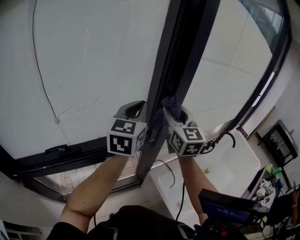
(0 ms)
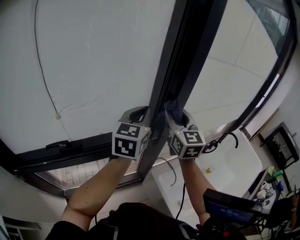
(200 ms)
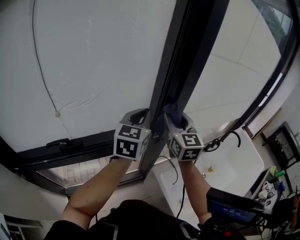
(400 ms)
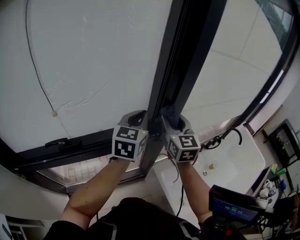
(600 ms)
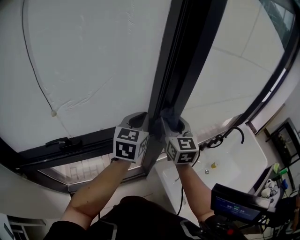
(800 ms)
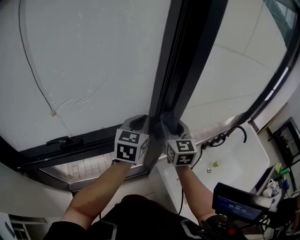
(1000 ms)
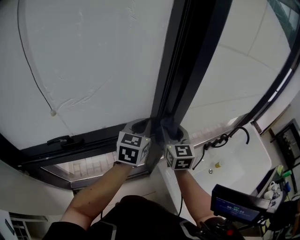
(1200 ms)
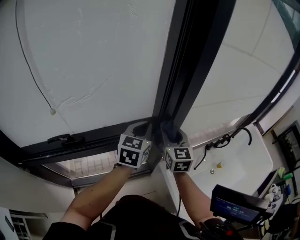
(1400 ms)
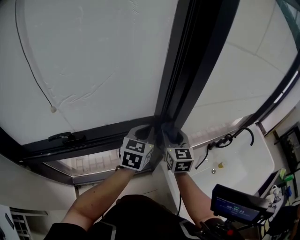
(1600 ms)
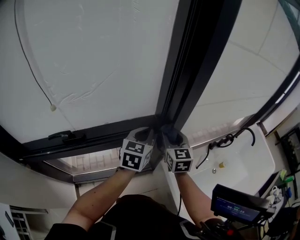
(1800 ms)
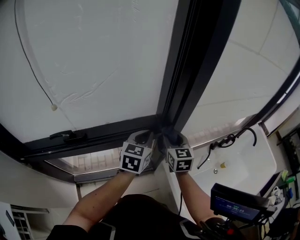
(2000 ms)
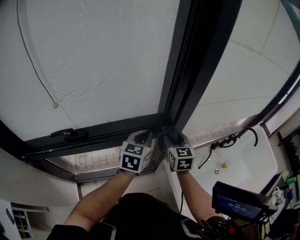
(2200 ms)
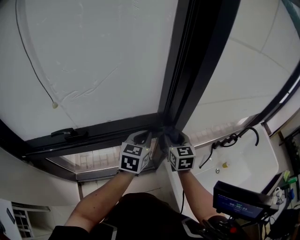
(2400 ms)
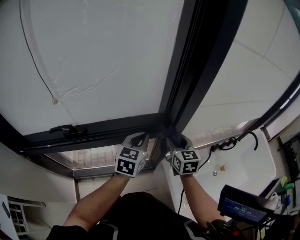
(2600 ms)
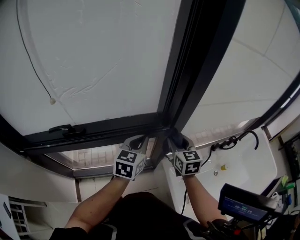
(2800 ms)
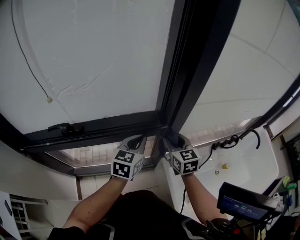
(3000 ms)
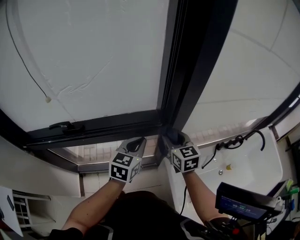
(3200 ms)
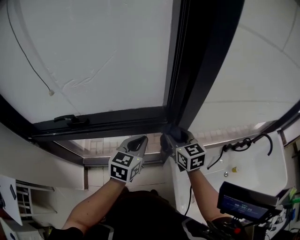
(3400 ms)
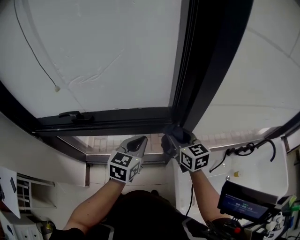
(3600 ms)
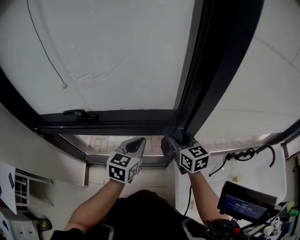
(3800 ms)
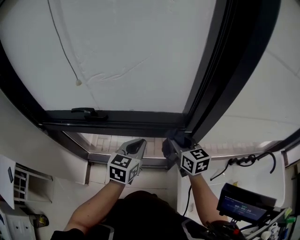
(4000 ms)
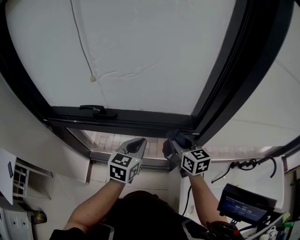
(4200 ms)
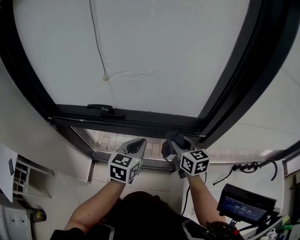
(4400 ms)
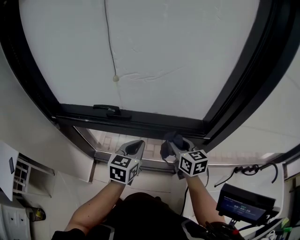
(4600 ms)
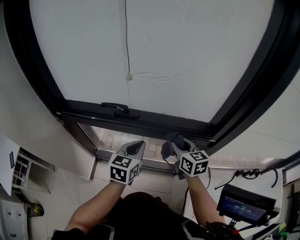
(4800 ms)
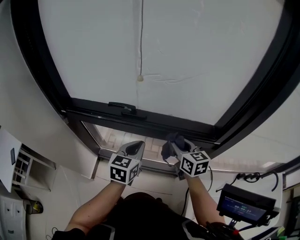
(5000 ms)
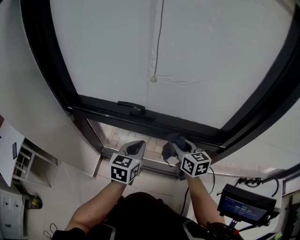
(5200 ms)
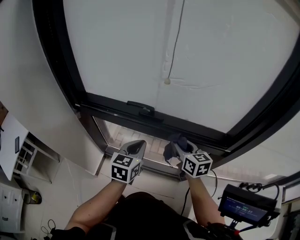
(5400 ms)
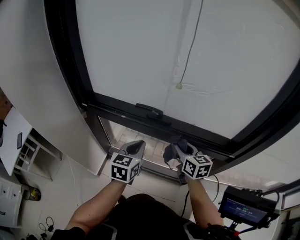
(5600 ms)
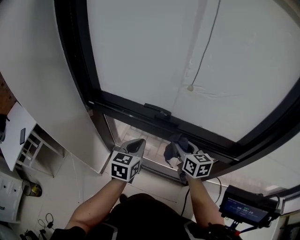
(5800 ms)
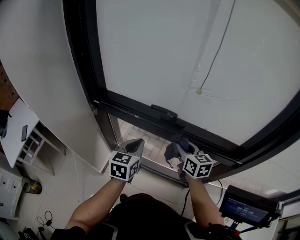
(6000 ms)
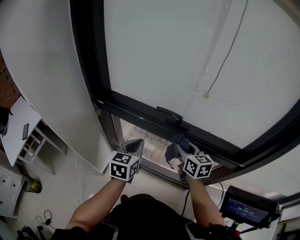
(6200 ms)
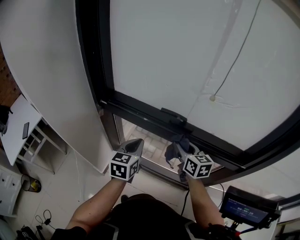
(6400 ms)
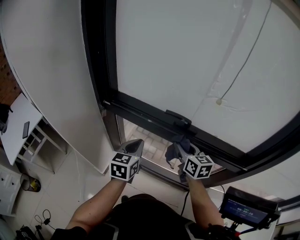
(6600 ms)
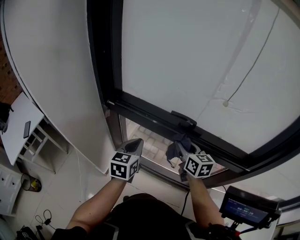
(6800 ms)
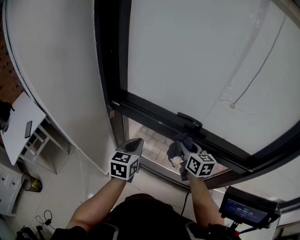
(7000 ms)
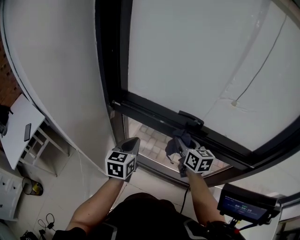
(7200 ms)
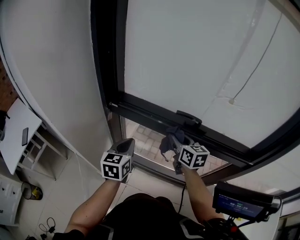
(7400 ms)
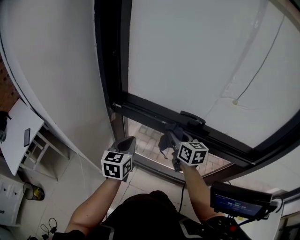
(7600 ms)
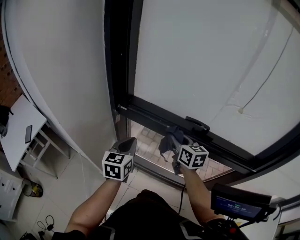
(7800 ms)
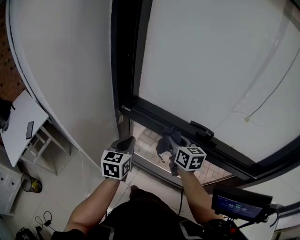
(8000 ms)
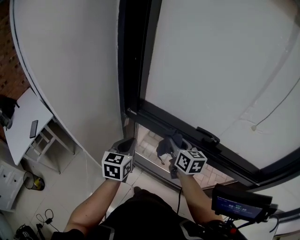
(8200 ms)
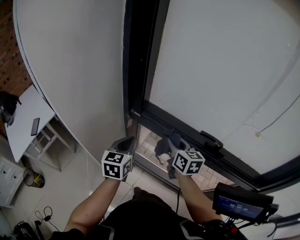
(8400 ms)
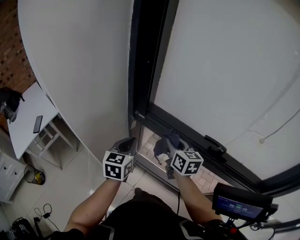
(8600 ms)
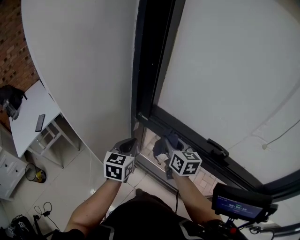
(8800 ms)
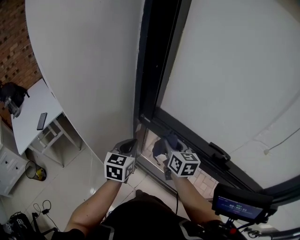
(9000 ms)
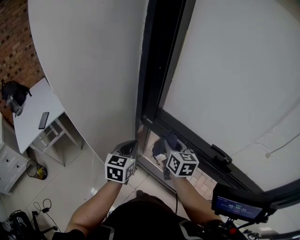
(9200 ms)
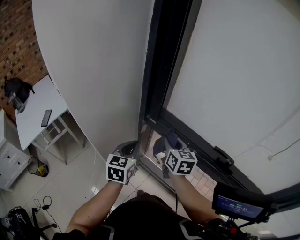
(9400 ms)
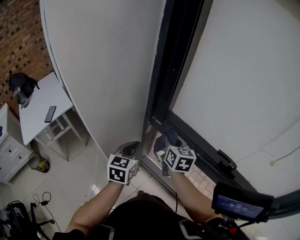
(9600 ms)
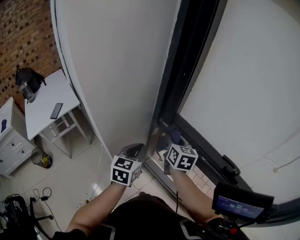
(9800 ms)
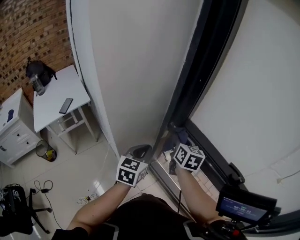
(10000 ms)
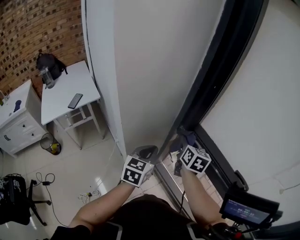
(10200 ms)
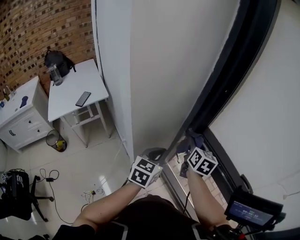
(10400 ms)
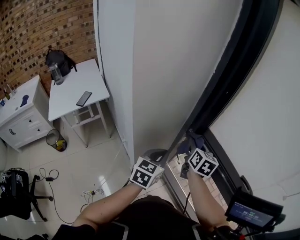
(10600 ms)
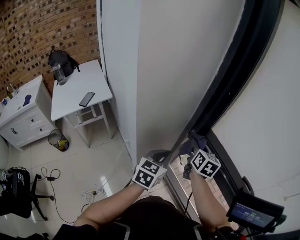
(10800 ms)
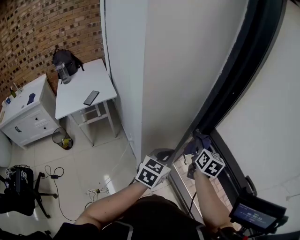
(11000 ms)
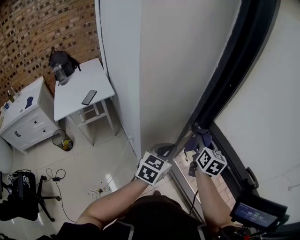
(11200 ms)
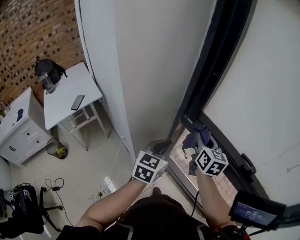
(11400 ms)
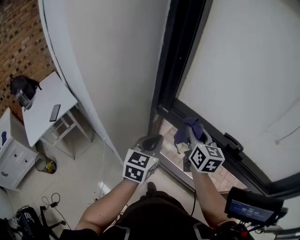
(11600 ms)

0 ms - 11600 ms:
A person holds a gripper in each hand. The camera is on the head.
0 ms - 1400 ms: Both grippers travel together downward, some 20 cm.
1400 ms - 2800 ms: Both grippers move downward, approximately 10 cm.
2800 ms - 4400 ms: The two grippers go some 15 cm to the left. The right gripper rotates some 30 degrees.
4400 ms - 5800 ms: Both grippers travel together to the left, about 20 cm.
5800 ms - 7200 ms: Both grippers move to the left, roughly 15 cm.
7200 ms - 8800 ms: The two grippers go some 15 cm to the left and forward.
8800 ms - 10200 ms: The left gripper goes approximately 5 cm to the left, while the right gripper is displaced to the left and forward by roughly 10 cm.
10200 ms - 11600 ms: The right gripper travels backward, to the right and upward by roughly 15 cm, while the left gripper travels to the right by about 5 cm.

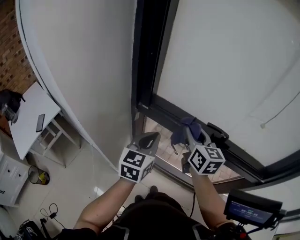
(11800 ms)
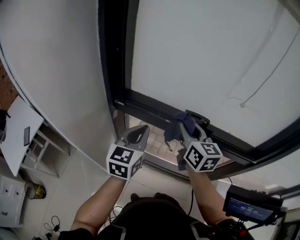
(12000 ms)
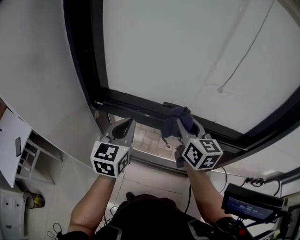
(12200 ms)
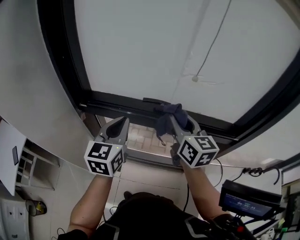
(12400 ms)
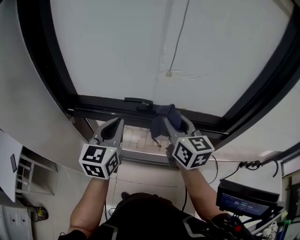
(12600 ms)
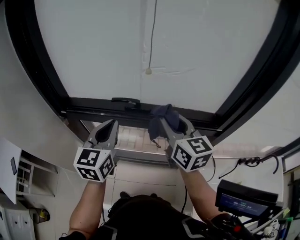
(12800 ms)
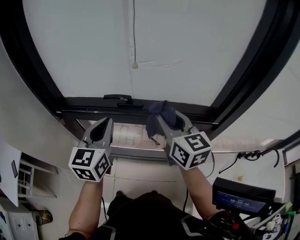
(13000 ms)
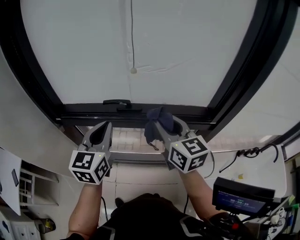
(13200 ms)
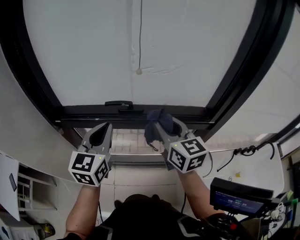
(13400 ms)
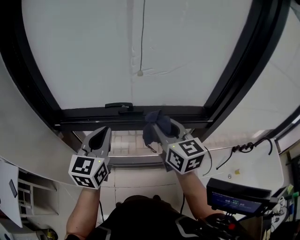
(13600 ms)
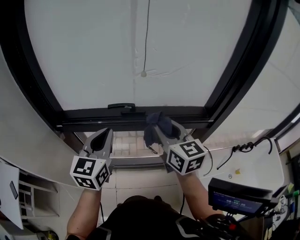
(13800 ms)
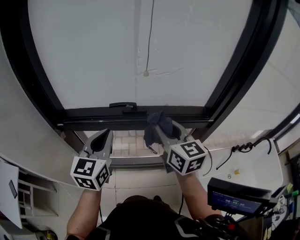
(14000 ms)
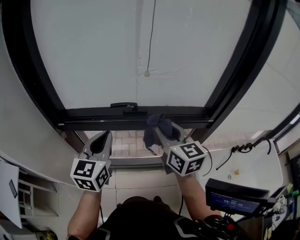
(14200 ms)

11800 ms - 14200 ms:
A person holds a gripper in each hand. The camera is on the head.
11800 ms - 13000 ms: The two grippers go approximately 25 cm to the right.
13000 ms - 14200 ms: The right gripper ends up approximately 5 cm from where it was; the left gripper travels to the left by some 5 cm.

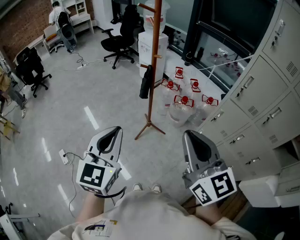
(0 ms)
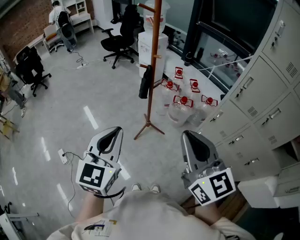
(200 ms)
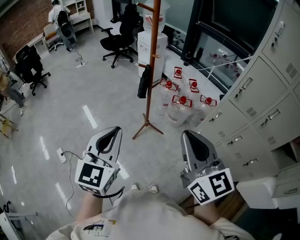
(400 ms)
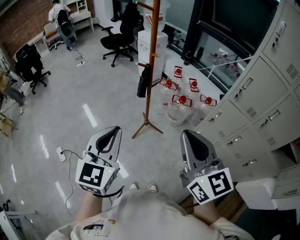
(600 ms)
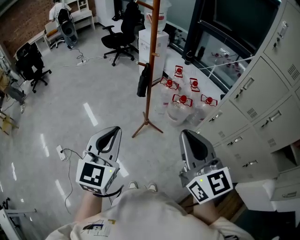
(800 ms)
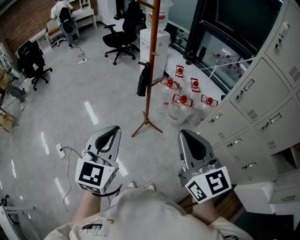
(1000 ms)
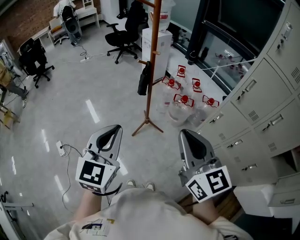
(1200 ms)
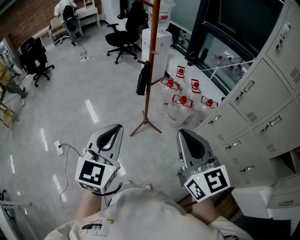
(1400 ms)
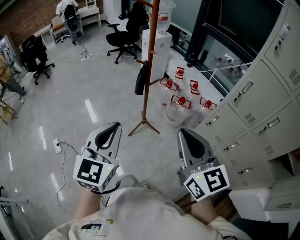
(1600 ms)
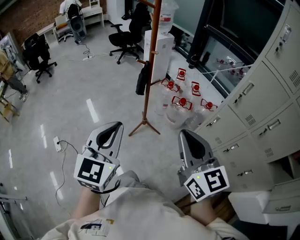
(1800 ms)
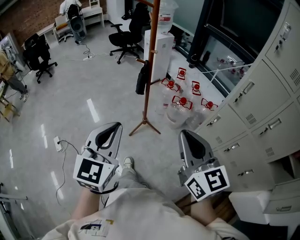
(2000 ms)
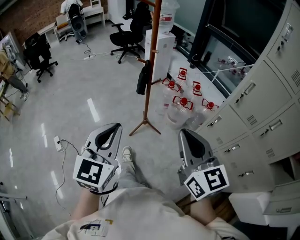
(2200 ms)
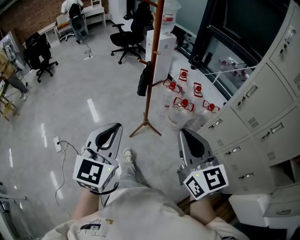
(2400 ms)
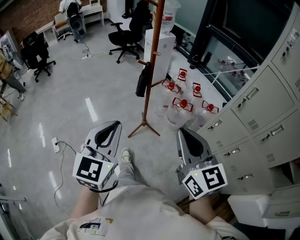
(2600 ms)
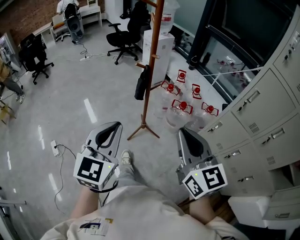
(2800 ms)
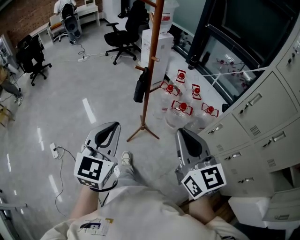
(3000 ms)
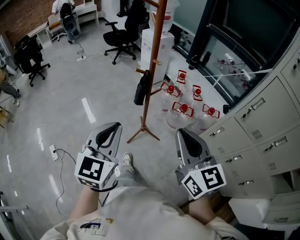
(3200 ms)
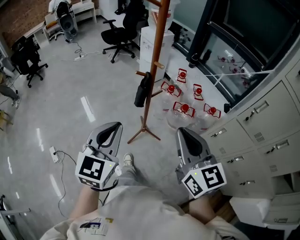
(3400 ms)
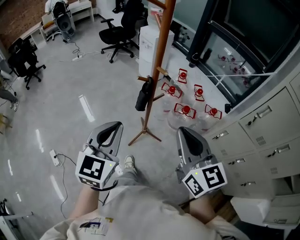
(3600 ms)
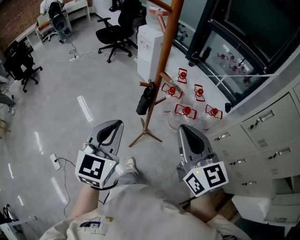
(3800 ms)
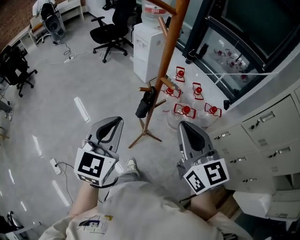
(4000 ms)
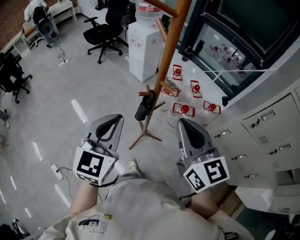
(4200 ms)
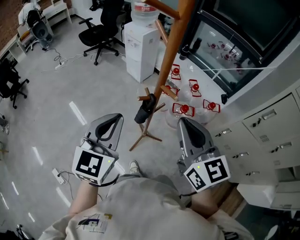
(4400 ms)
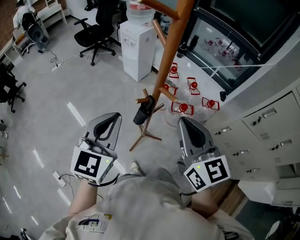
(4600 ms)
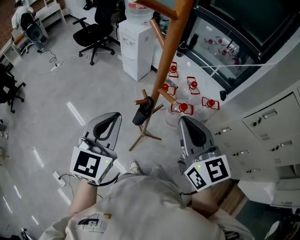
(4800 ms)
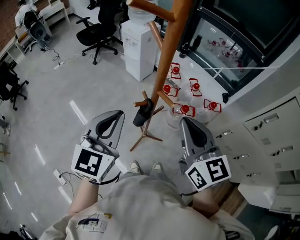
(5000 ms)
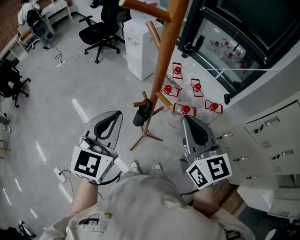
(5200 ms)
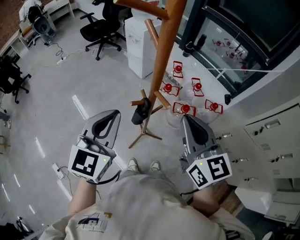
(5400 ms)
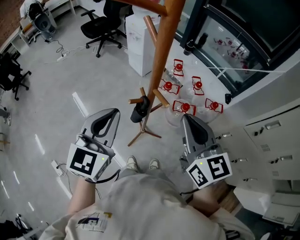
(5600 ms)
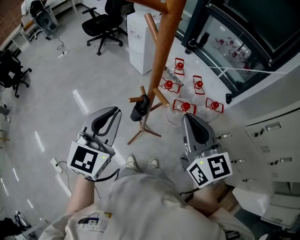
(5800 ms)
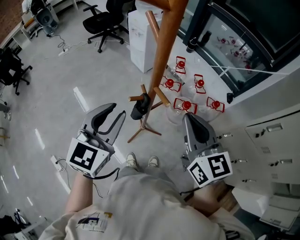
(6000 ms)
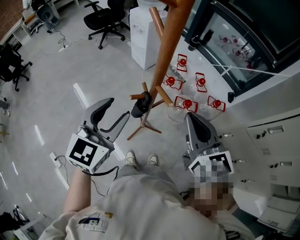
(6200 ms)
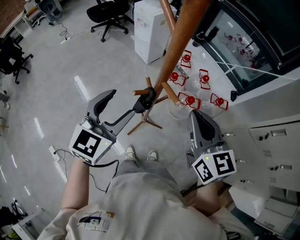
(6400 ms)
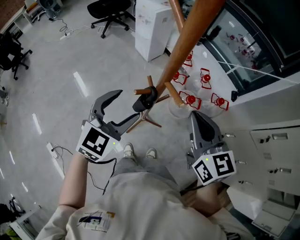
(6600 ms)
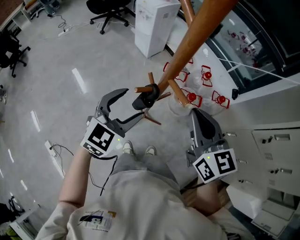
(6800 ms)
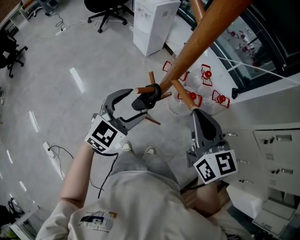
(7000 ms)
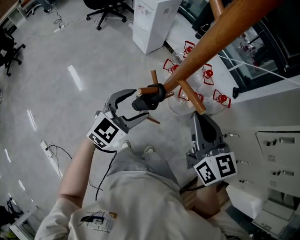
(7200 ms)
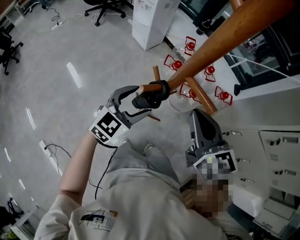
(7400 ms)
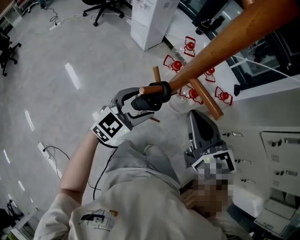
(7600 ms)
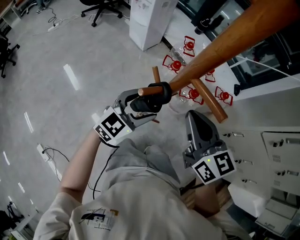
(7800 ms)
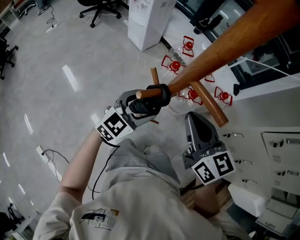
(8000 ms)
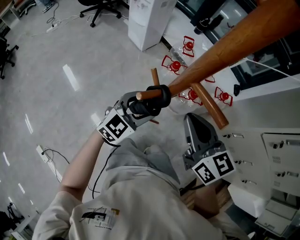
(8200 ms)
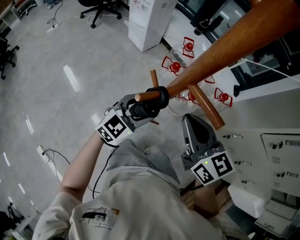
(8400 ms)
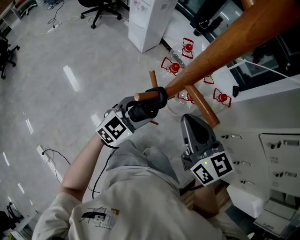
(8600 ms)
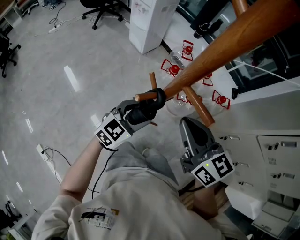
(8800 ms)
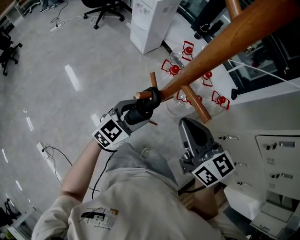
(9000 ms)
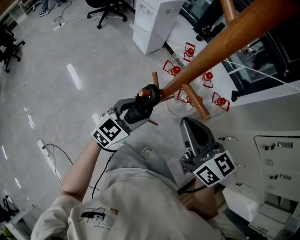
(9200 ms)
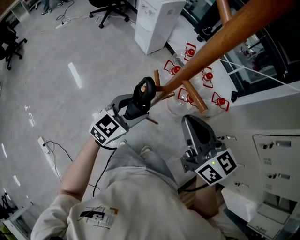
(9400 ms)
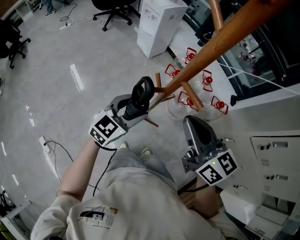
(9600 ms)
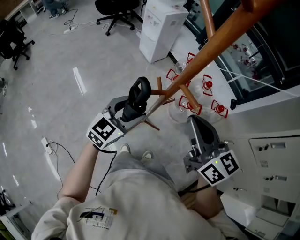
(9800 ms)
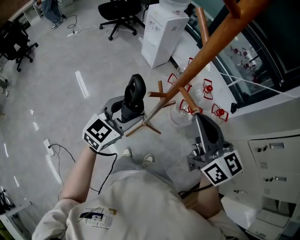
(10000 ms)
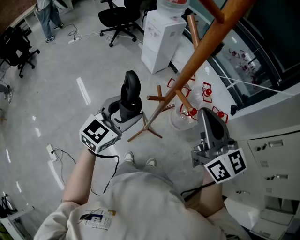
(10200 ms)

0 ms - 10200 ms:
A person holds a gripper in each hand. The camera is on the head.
0 ms - 1400 ms: The left gripper shifts some 5 cm to the right; the right gripper moves some 5 cm.
1400 ms - 3000 ms: The two grippers go approximately 10 cm forward.
3000 ms - 4400 ms: The grippers both shift forward by some 30 cm.
4400 ms - 5800 ms: The right gripper heads forward and to the right, covering some 10 cm. The left gripper travels forward by approximately 5 cm.
5800 ms - 7200 ms: The left gripper heads downward, covering some 20 cm, turns by roughly 20 degrees, and opens its fingers. Meanwhile the right gripper moves downward, roughly 10 cm.
7200 ms - 8800 ms: The left gripper is displaced downward by approximately 10 cm.
8800 ms - 10200 ms: The left gripper goes about 25 cm upward and to the left, while the right gripper shifts roughly 20 cm upward.
